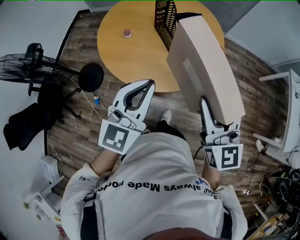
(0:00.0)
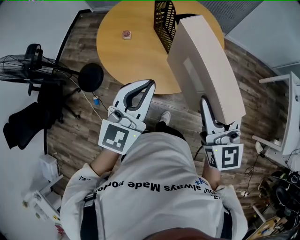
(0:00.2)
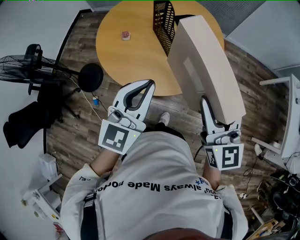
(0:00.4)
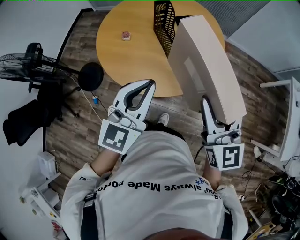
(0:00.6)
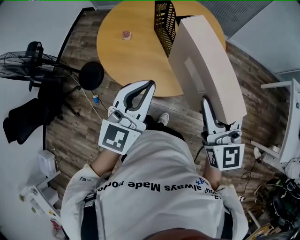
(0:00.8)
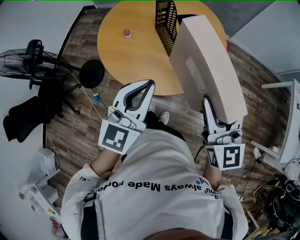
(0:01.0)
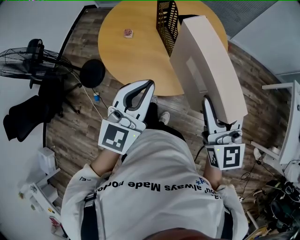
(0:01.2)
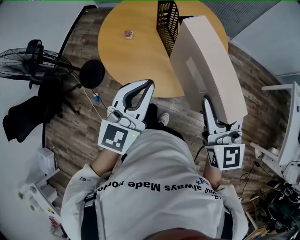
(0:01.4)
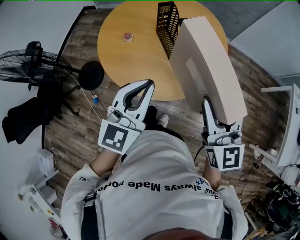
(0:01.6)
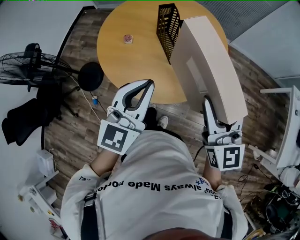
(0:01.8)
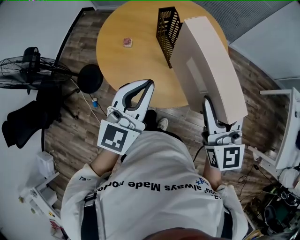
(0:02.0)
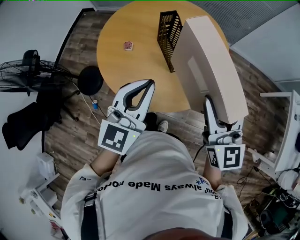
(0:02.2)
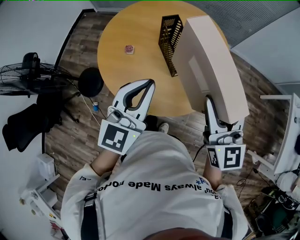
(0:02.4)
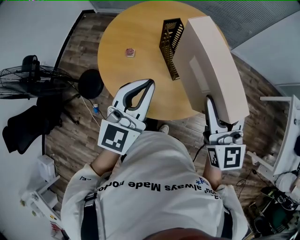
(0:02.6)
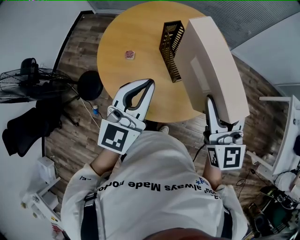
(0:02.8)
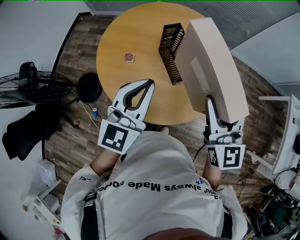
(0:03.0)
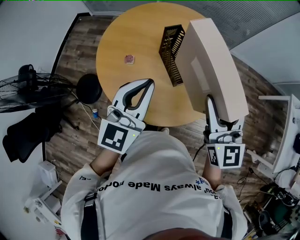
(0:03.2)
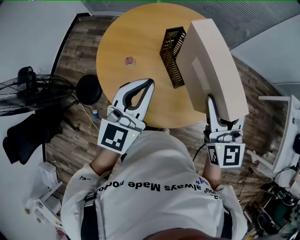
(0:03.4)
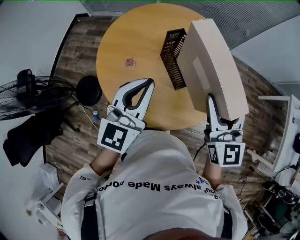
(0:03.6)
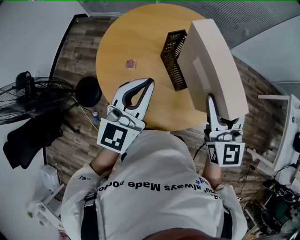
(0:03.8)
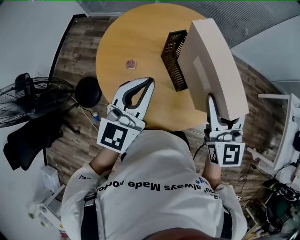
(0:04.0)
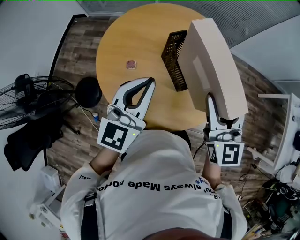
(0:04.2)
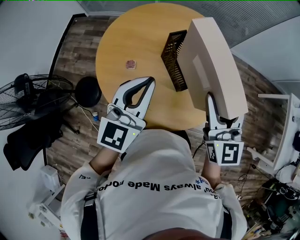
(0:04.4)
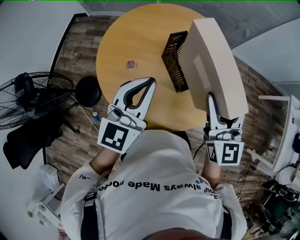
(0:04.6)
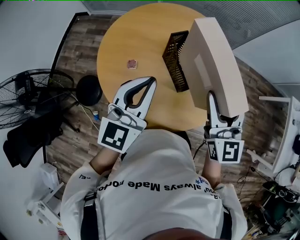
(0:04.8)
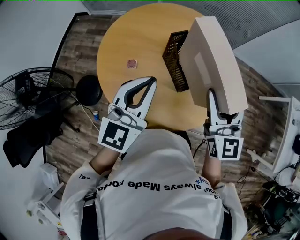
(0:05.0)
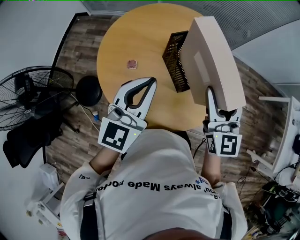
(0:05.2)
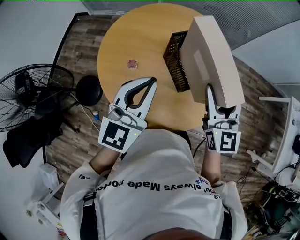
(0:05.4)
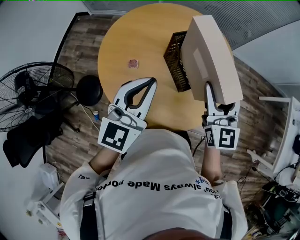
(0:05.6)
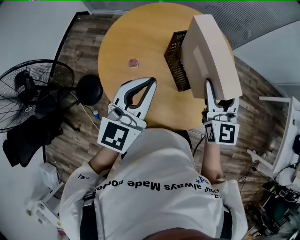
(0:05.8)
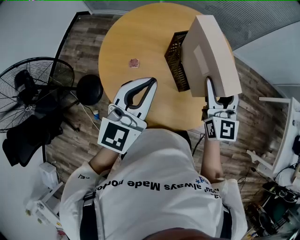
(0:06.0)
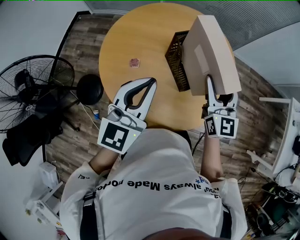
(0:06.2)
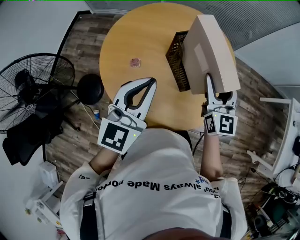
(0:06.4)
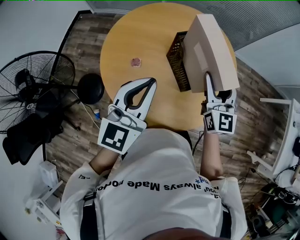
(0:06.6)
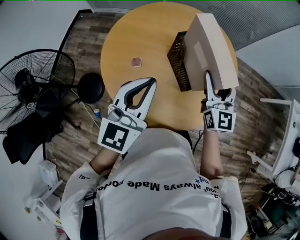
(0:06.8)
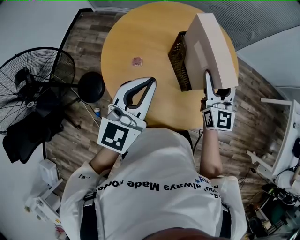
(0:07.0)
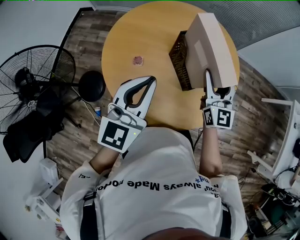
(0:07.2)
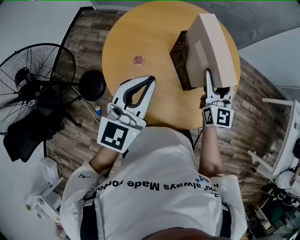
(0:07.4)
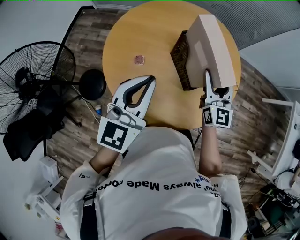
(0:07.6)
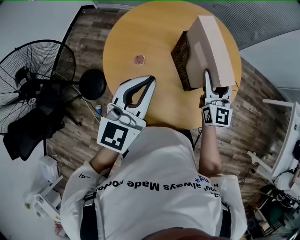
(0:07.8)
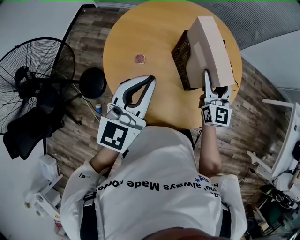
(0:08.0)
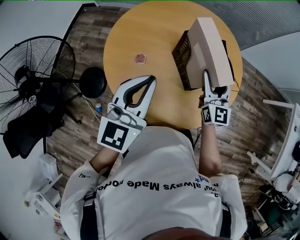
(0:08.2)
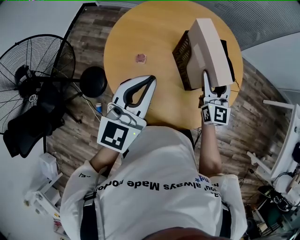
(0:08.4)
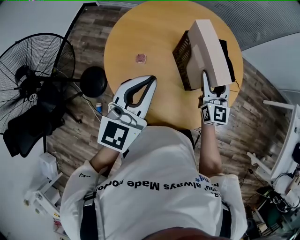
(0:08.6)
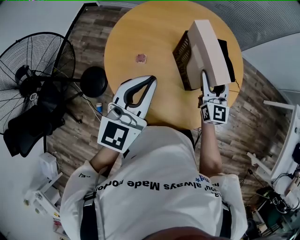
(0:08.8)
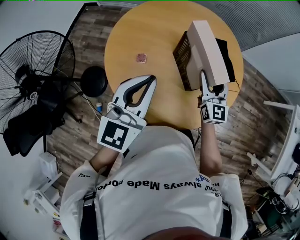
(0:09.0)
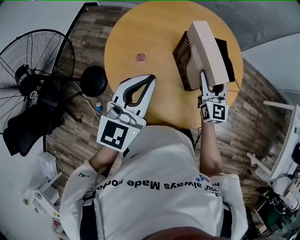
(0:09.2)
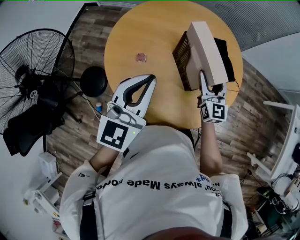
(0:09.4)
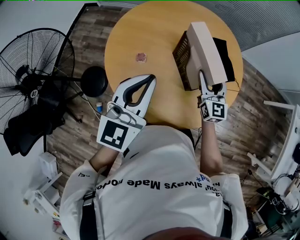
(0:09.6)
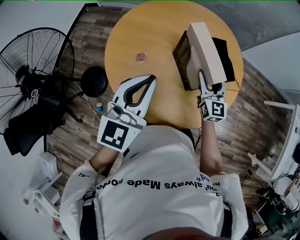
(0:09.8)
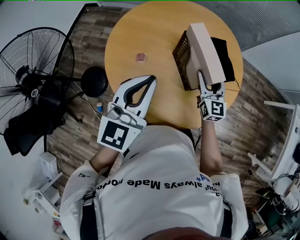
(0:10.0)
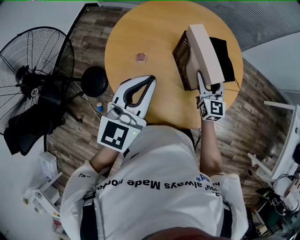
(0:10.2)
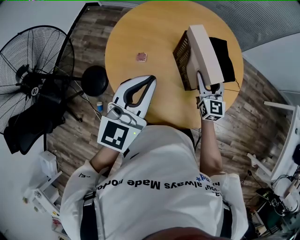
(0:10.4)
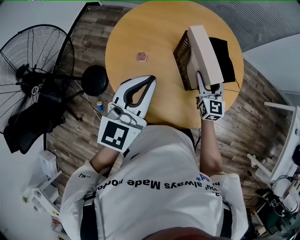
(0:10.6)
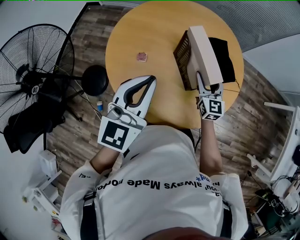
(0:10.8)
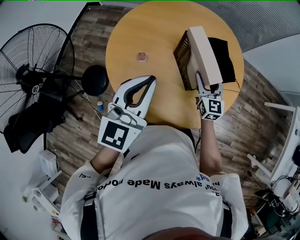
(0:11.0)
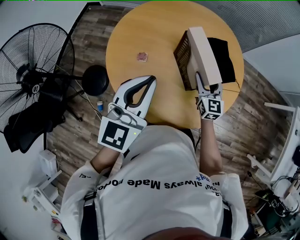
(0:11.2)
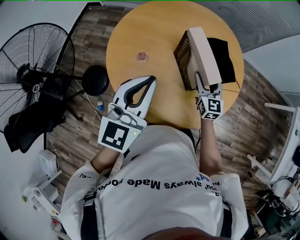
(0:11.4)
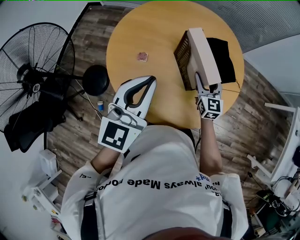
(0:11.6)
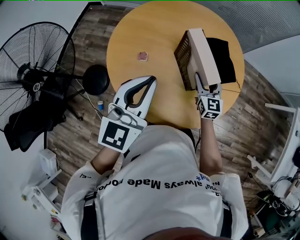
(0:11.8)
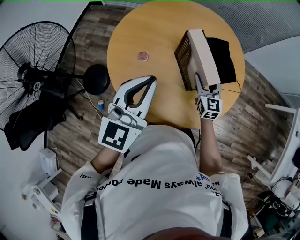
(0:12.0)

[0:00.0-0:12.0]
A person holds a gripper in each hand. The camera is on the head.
0:00.0 to 0:01.6: The grippers both shift forward by approximately 5 cm.
0:01.6 to 0:03.0: The right gripper heads forward, covering roughly 15 cm. The left gripper moves forward and to the left, roughly 20 cm.
0:03.0 to 0:04.4: The two grippers go approximately 10 cm forward and to the left.
0:04.4 to 0:06.0: The right gripper is displaced downward by about 5 cm.
0:06.0 to 0:07.6: The right gripper travels downward by about 5 cm.
0:07.6 to 0:09.0: The right gripper travels downward by roughly 5 cm.
0:09.0 to 0:10.4: The grippers stay close to where they were, moving slightly.
0:10.4 to 0:12.0: There are only small adjustments of the grippers.

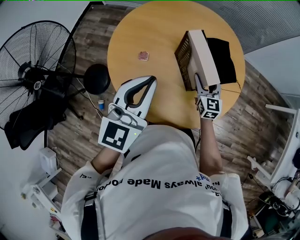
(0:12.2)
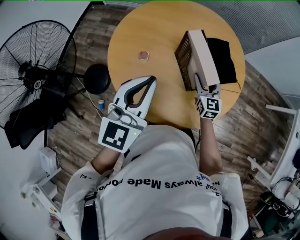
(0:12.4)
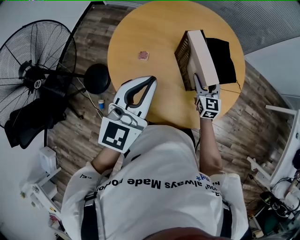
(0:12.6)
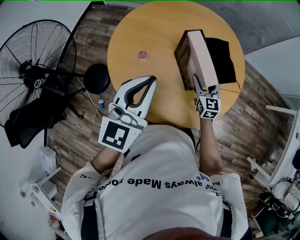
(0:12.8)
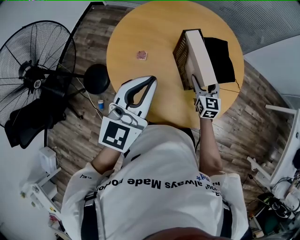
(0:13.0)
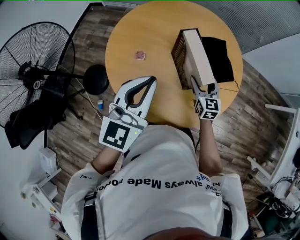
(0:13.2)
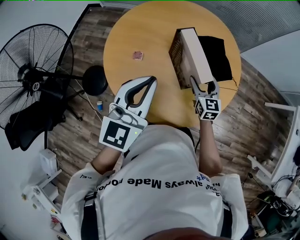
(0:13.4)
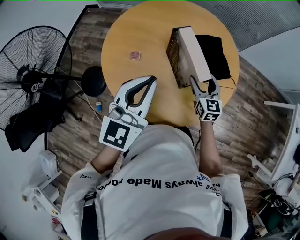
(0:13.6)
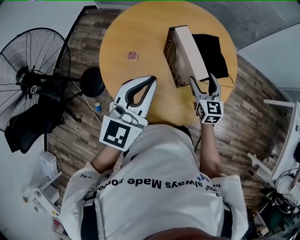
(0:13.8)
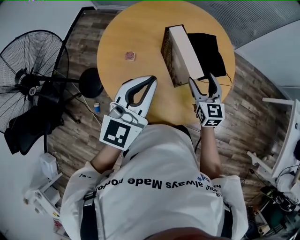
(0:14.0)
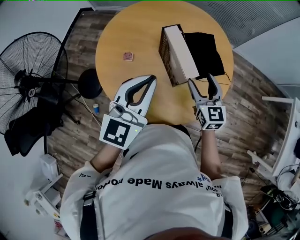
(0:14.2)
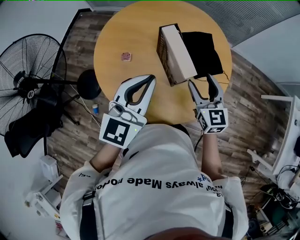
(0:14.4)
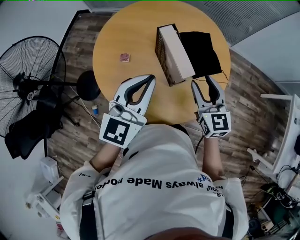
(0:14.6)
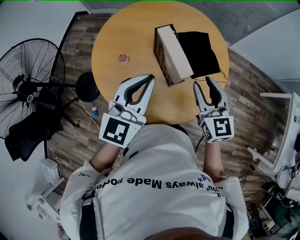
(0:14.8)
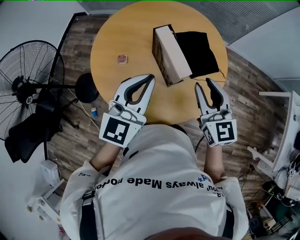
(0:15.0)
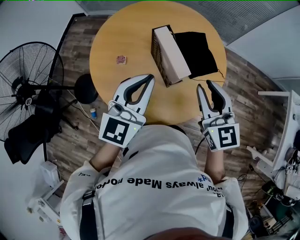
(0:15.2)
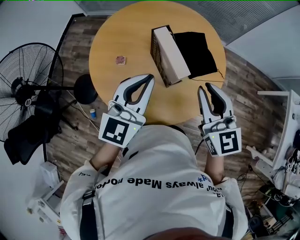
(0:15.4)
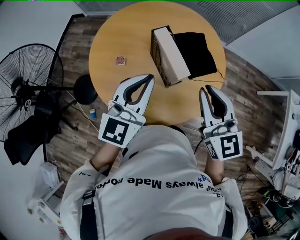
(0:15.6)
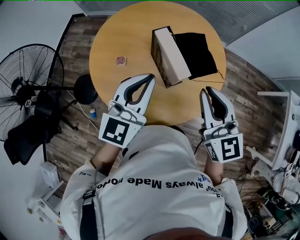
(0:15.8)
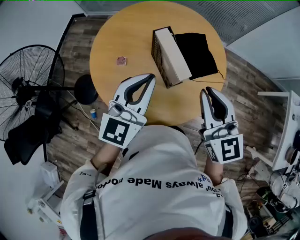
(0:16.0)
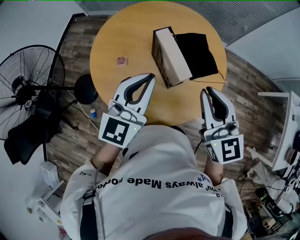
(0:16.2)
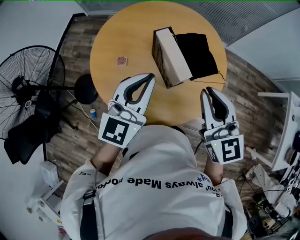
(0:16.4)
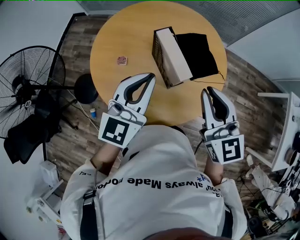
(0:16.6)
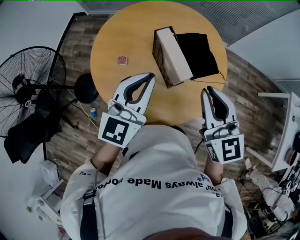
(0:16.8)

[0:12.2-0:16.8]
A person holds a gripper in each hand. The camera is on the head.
0:12.2 to 0:13.8: The left gripper travels to the right by approximately 5 cm. The right gripper changes place by about 5 cm.
0:13.8 to 0:15.2: The right gripper moves upward, some 15 cm, and closes.
0:15.2 to 0:16.8: The grippers make only small movements.

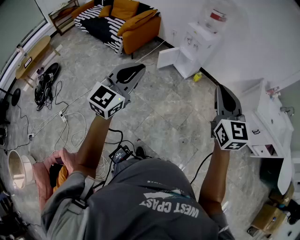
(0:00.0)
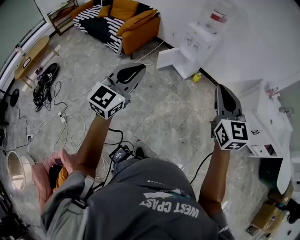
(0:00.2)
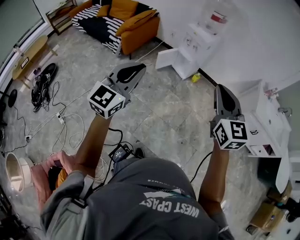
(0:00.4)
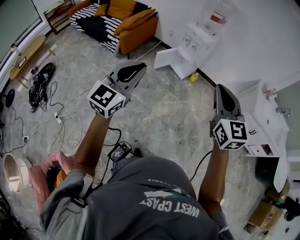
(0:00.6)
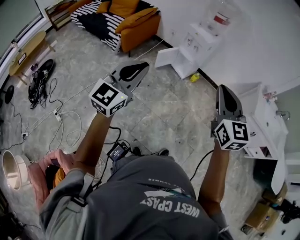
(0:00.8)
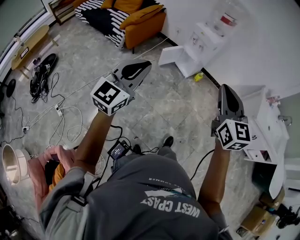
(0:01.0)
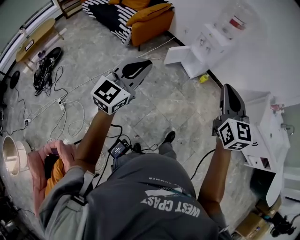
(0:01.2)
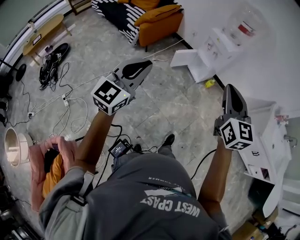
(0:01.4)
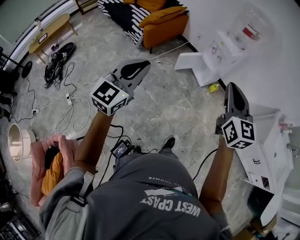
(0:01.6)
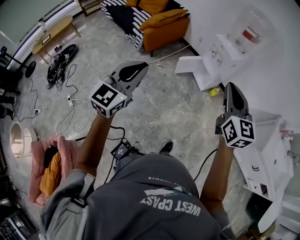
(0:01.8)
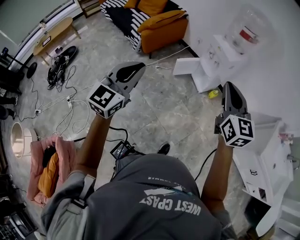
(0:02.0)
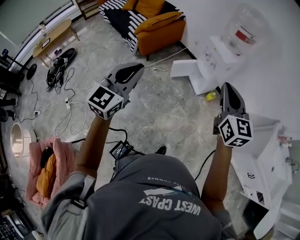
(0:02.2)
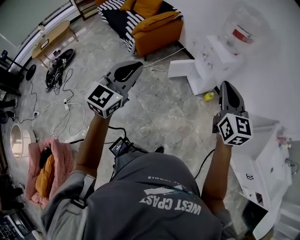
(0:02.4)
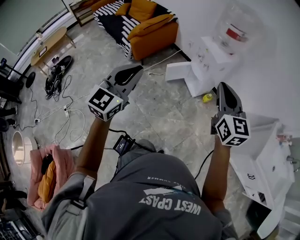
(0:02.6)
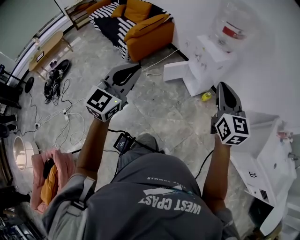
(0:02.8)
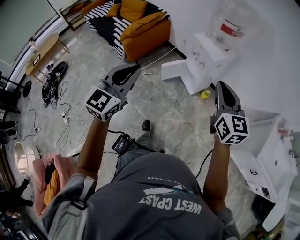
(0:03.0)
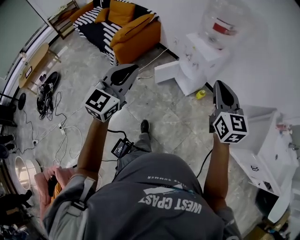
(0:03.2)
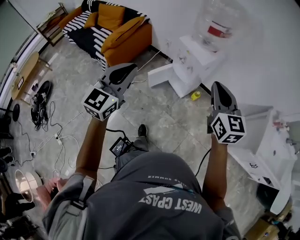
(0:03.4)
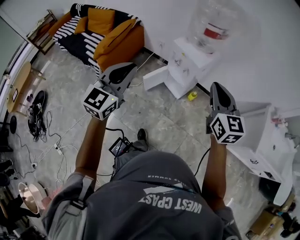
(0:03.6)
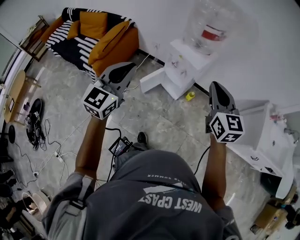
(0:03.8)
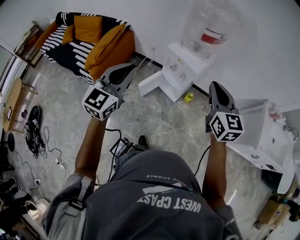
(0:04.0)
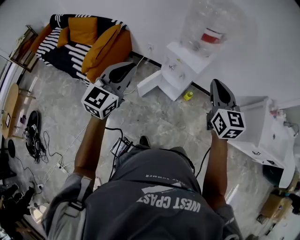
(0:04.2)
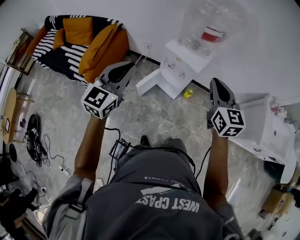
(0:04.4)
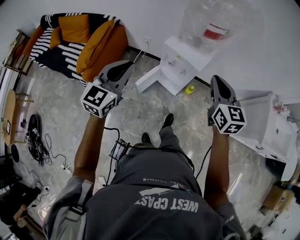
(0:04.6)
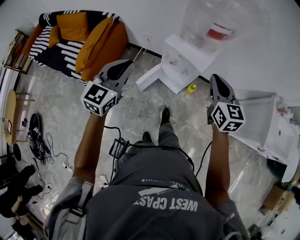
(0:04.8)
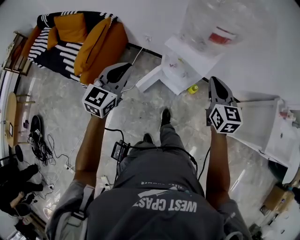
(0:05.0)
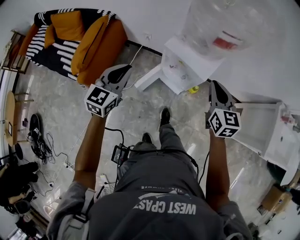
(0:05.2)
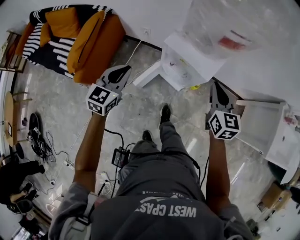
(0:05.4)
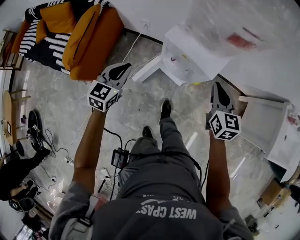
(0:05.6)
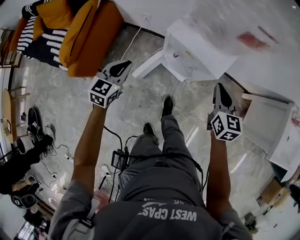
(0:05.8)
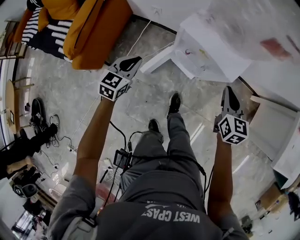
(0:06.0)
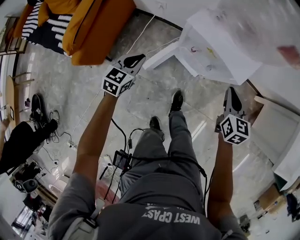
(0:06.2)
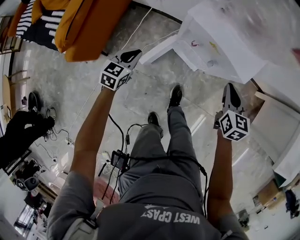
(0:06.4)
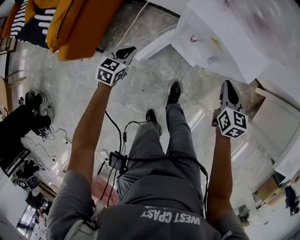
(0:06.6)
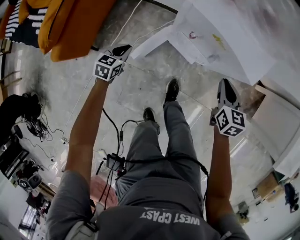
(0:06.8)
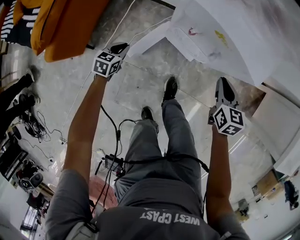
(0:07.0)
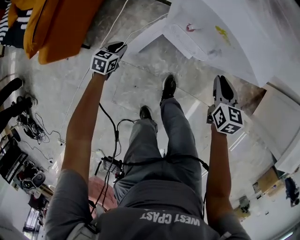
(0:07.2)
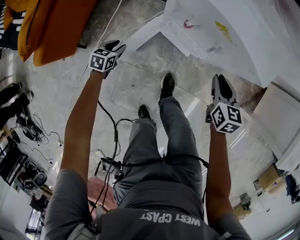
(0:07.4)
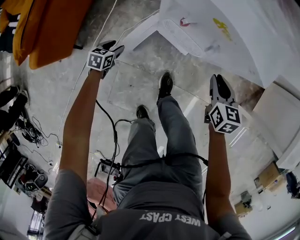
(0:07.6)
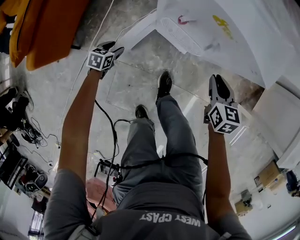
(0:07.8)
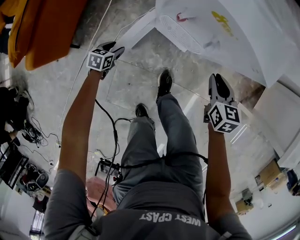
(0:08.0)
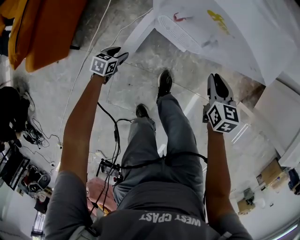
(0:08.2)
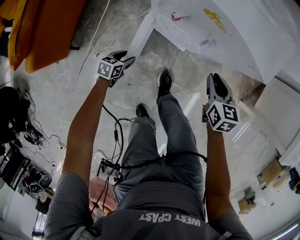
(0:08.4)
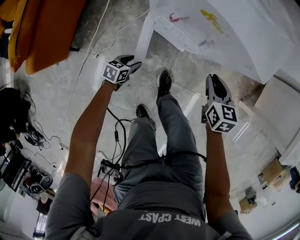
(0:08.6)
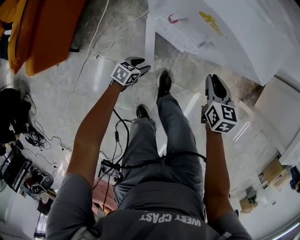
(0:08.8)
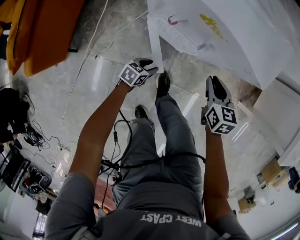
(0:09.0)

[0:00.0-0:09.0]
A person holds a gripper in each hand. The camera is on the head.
0:00.0 to 0:01.6: The left gripper shifts some 10 cm forward and to the left. Meanwhile the right gripper is displaced forward by about 20 cm.
0:01.6 to 0:03.0: The grippers both shift forward and to the right by about 20 cm.
0:03.0 to 0:04.4: The two grippers go some 25 cm forward. The right gripper turns by about 20 degrees. Meanwhile the left gripper rotates approximately 20 degrees.
0:04.4 to 0:06.0: Both grippers travel together downward and forward, roughly 40 cm. The right gripper rotates about 20 degrees. Meanwhile the left gripper changes its angle by some 30 degrees.
0:06.0 to 0:07.6: The right gripper heads downward, covering approximately 20 cm, while the left gripper travels downward by roughly 35 cm, turns by approximately 30 degrees, and opens its fingers.
0:07.6 to 0:09.0: The left gripper moves to the right, roughly 25 cm, and swivels roughly 20 degrees.
